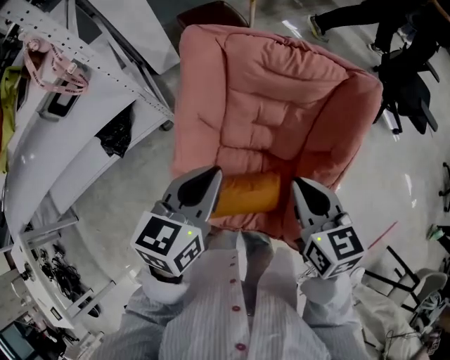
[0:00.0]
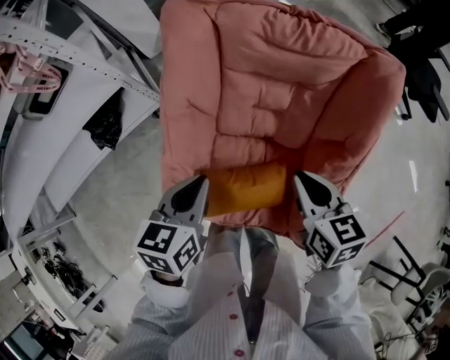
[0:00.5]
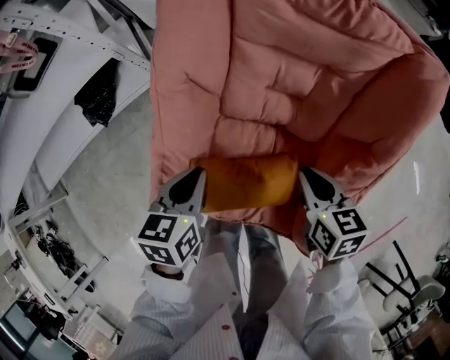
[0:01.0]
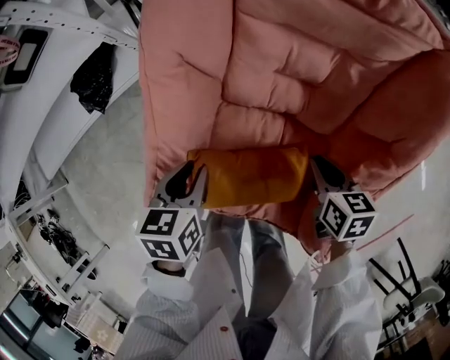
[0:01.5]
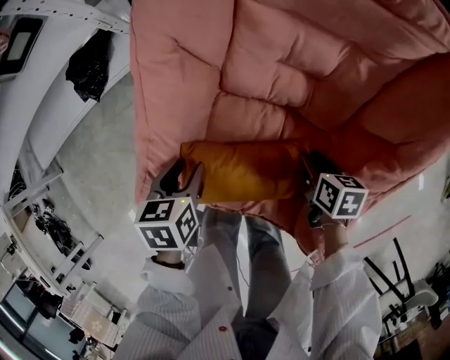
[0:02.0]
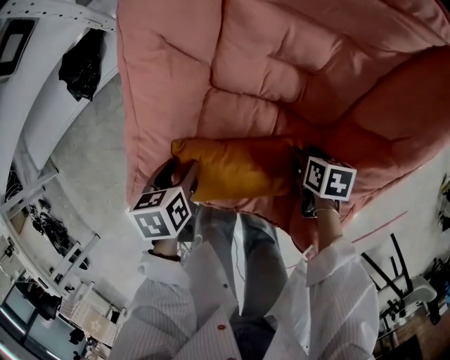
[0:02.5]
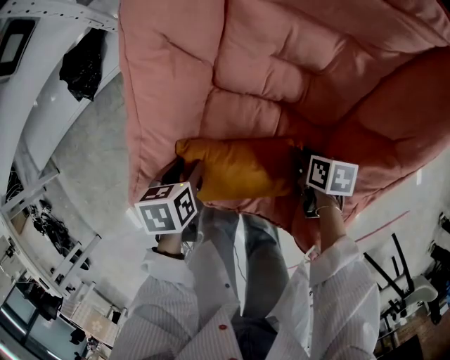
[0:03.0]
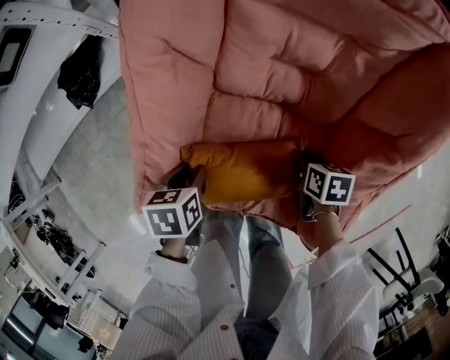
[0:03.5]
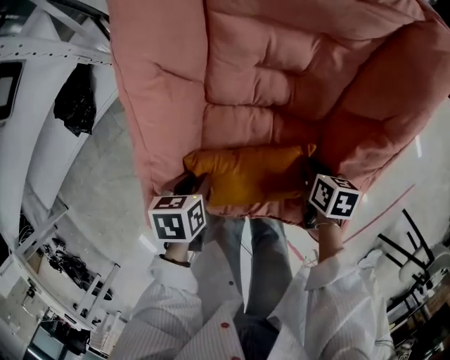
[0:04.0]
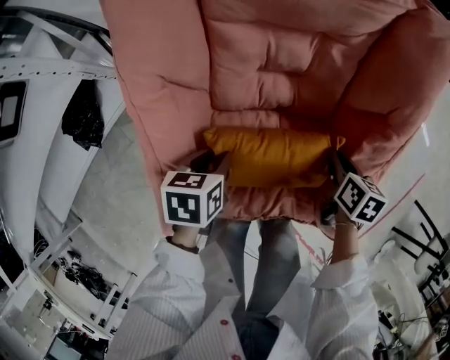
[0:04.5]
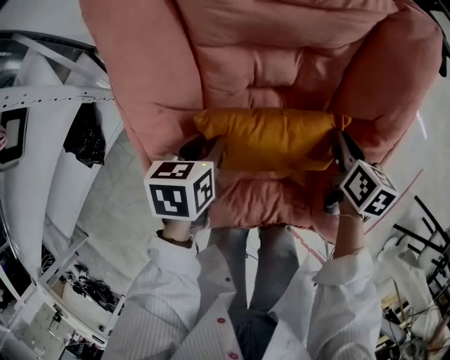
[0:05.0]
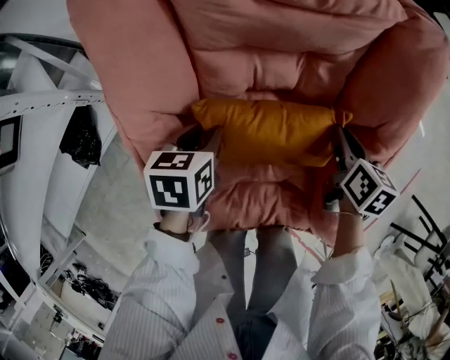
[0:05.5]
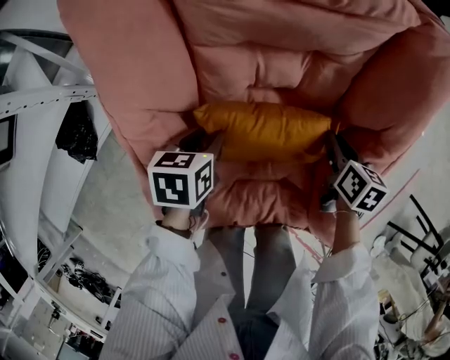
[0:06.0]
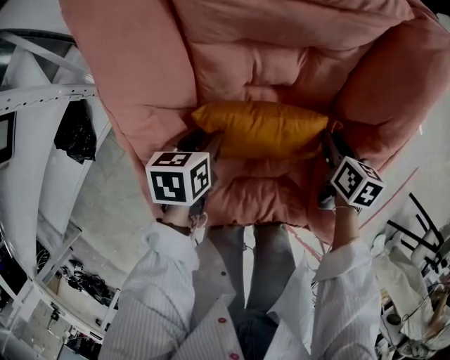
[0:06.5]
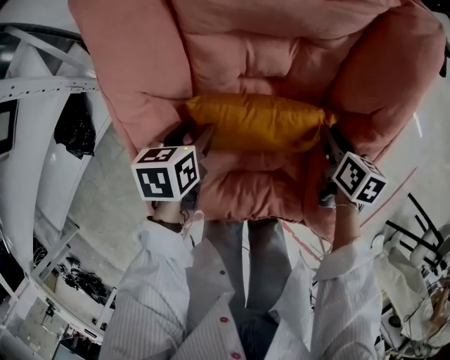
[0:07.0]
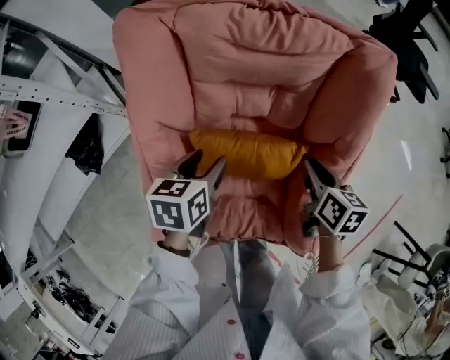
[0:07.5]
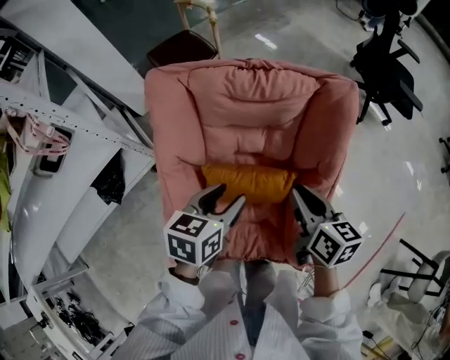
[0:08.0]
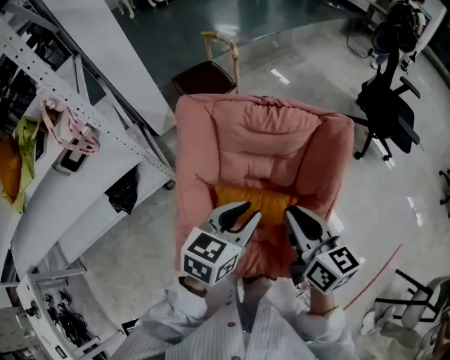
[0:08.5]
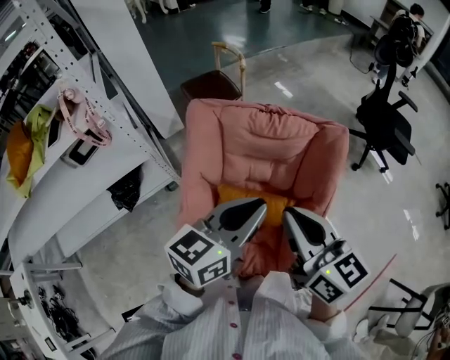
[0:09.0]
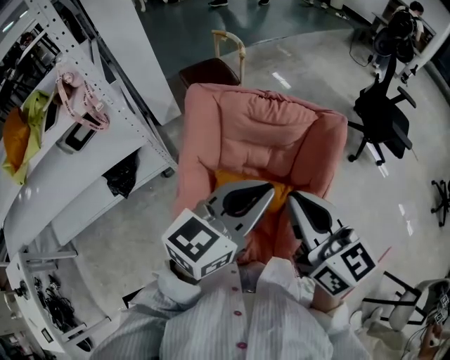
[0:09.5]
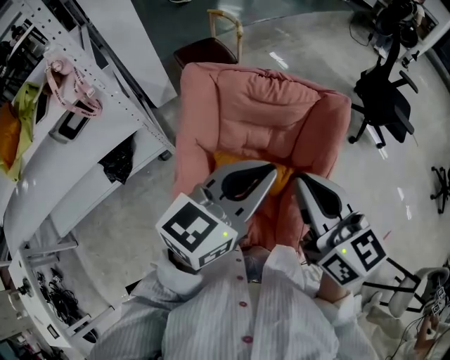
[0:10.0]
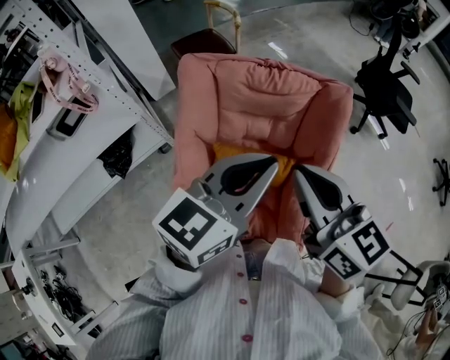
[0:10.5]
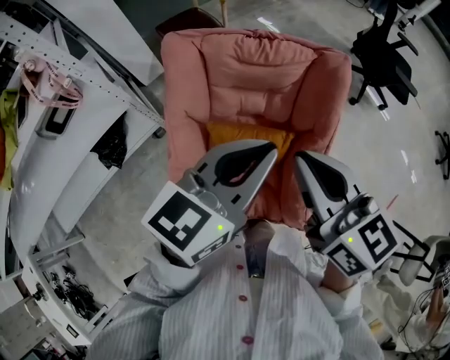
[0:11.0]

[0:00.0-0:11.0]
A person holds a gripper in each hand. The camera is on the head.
0:00.0 to 0:02.0: The two grippers go approximately 40 cm downward. The left gripper angles its fingers downward, by about 30 degrees, and opens up, while the right gripper turns by some 40 degrees, and opens up.
0:02.0 to 0:03.5: The right gripper changes place by roughly 5 cm.
0:03.5 to 0:05.5: The right gripper goes some 15 cm upward, and swivels approximately 40 degrees; the left gripper ends up roughly 25 cm from where it was, and changes its angle by about 30 degrees.
0:05.5 to 0:07.5: Both grippers move upward, some 5 cm. The left gripper opens its fingers.
0:07.5 to 0:09.0: The two grippers go some 35 cm upward. The left gripper tilts its fingers some 40 degrees upward, and closes its fingers. The right gripper angles its fingers upward, by about 30 degrees.
0:09.0 to 0:11.0: The grippers make only small movements.

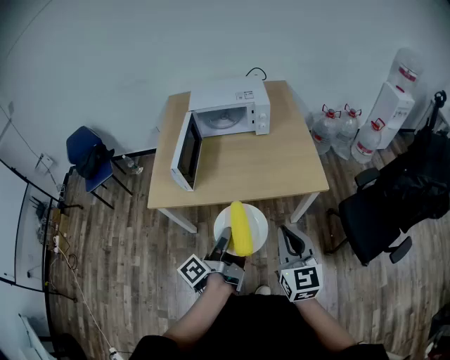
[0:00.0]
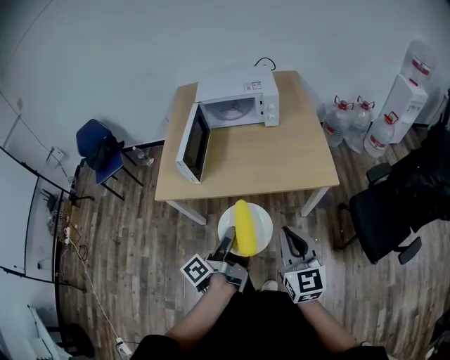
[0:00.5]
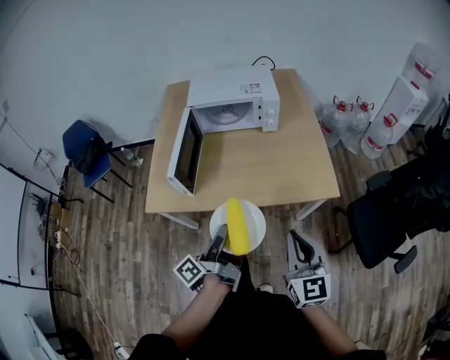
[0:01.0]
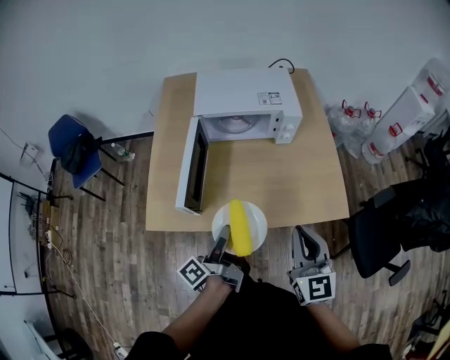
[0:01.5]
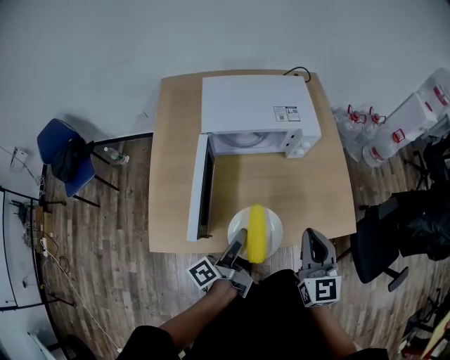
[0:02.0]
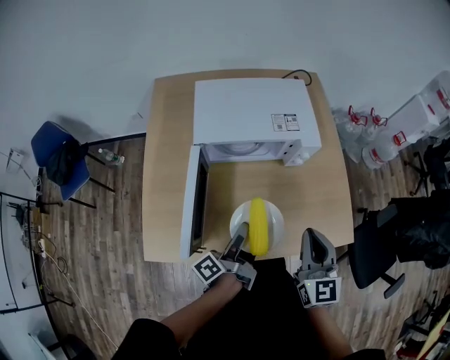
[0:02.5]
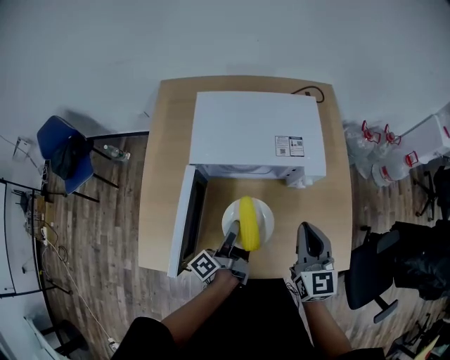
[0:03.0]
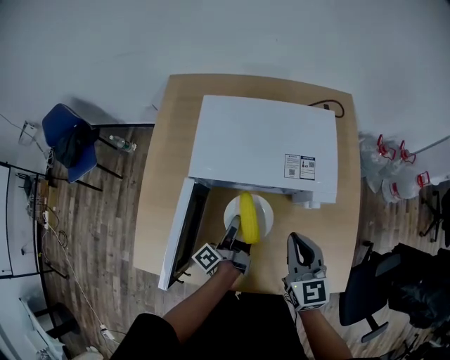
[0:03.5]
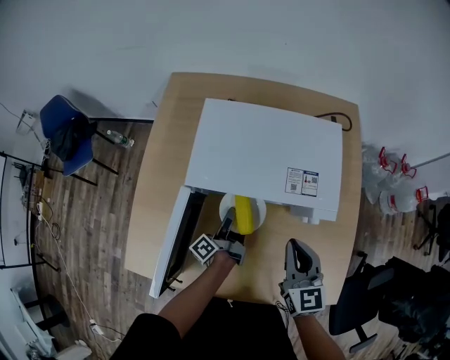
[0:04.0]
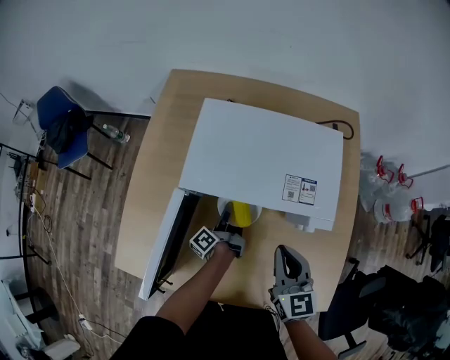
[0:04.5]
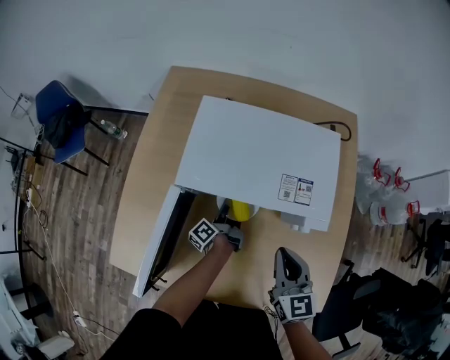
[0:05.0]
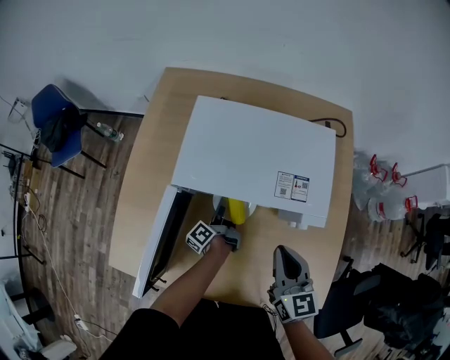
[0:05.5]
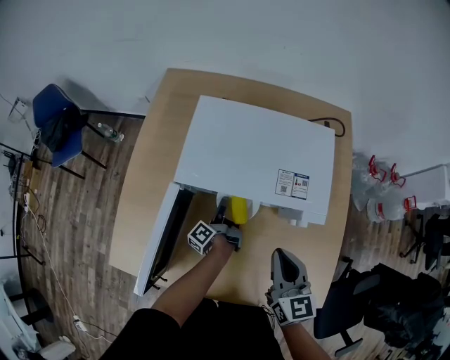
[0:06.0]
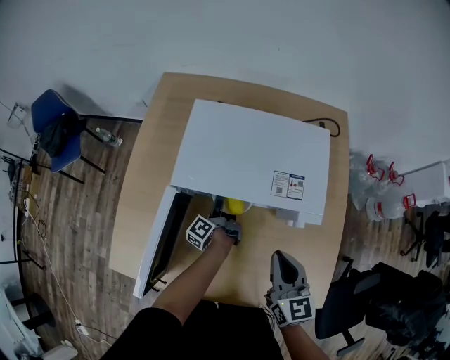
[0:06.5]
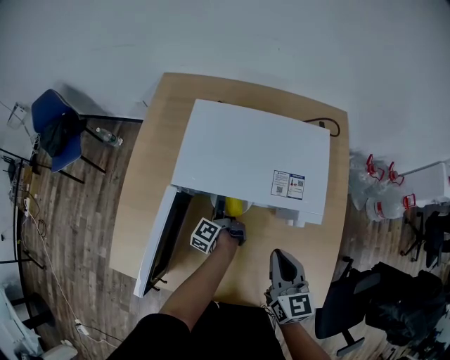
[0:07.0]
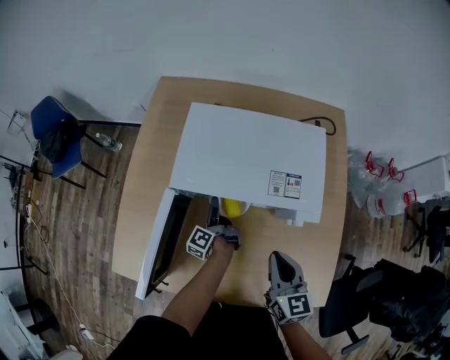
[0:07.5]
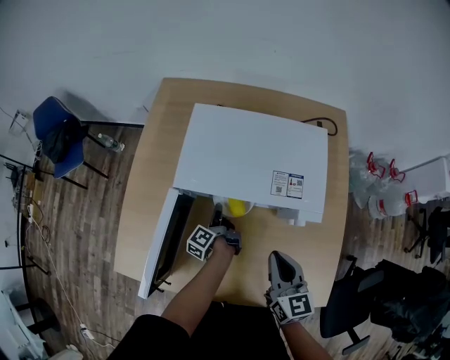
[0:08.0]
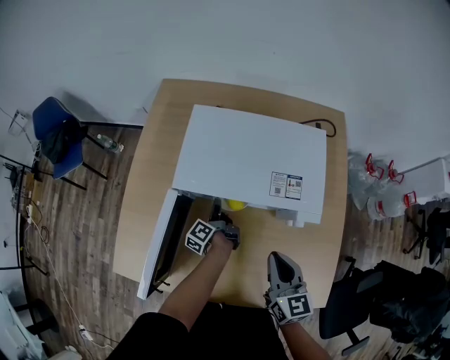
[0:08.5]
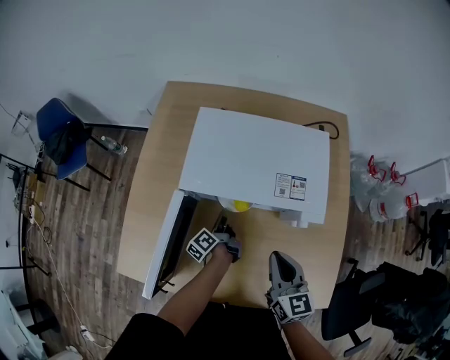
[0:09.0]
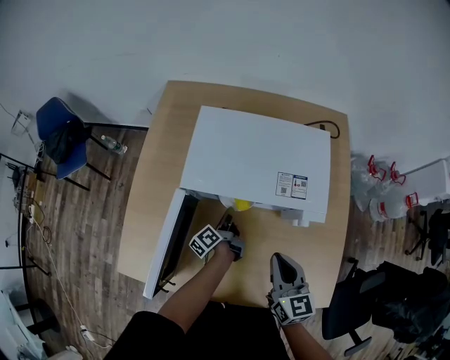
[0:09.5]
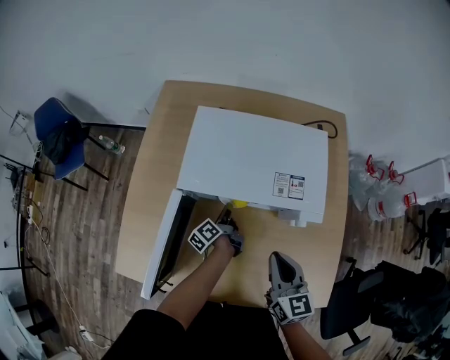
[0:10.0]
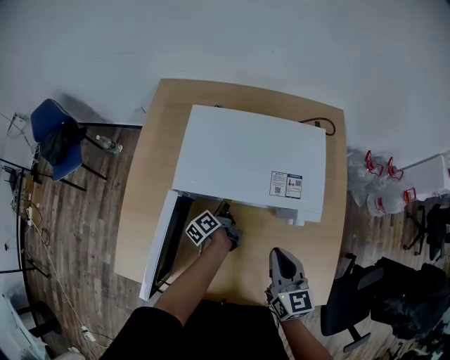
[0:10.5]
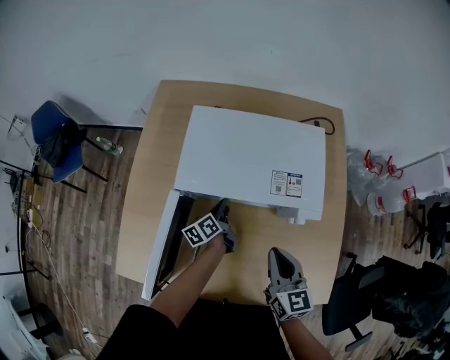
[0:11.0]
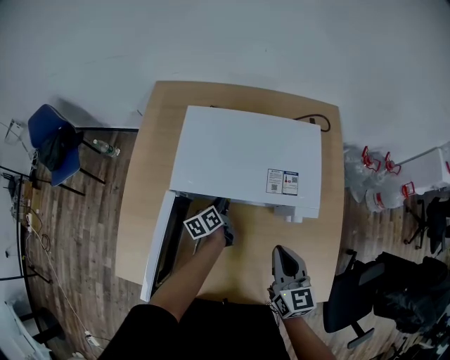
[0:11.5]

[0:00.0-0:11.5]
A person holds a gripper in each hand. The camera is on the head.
0:00.0 to 0:02.0: The right gripper shifts by roughly 30 cm.
0:02.0 to 0:04.0: The right gripper moves roughly 25 cm.

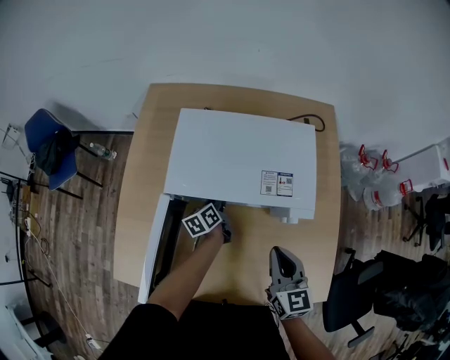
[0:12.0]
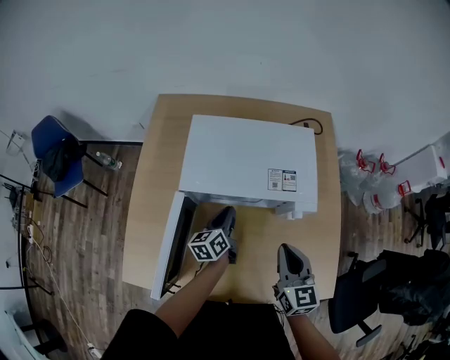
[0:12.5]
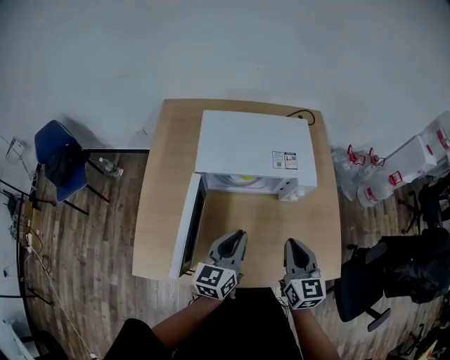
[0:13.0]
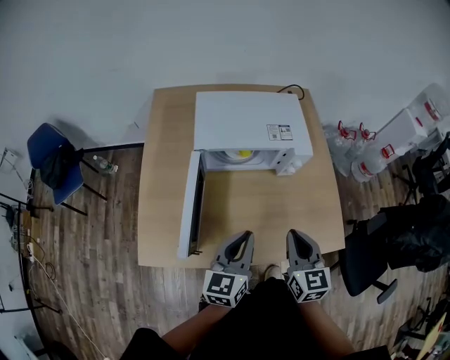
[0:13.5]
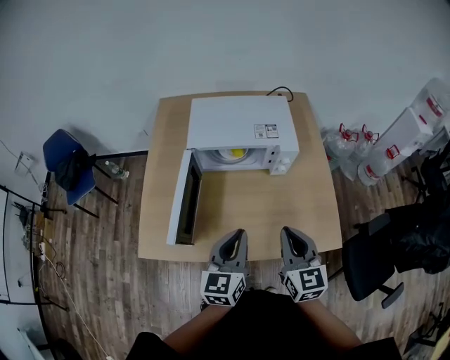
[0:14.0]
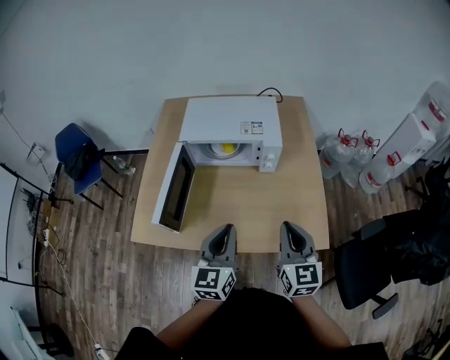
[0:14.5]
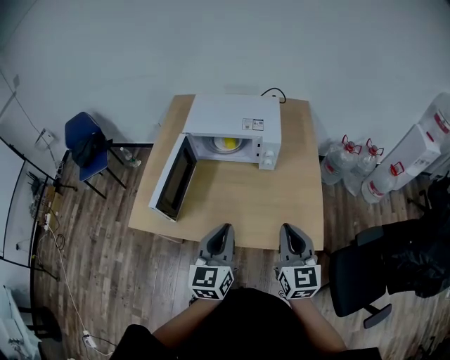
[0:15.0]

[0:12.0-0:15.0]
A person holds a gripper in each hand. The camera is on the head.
0:12.0 to 0:13.5: The right gripper ends up some 20 cm from where it was.
0:13.5 to 0:15.0: The right gripper shifts by some 20 cm.

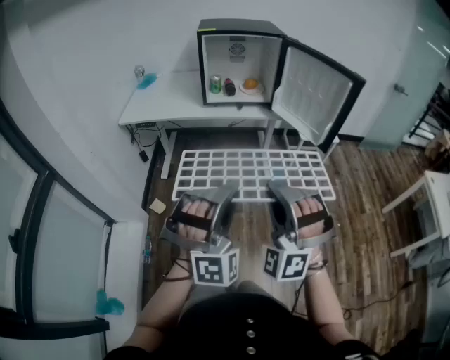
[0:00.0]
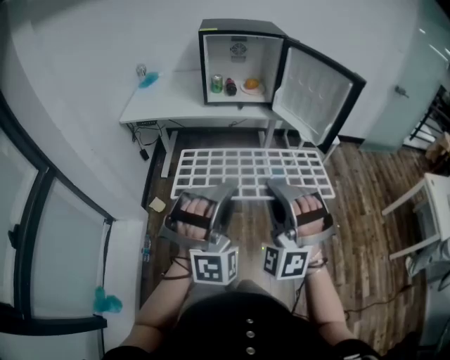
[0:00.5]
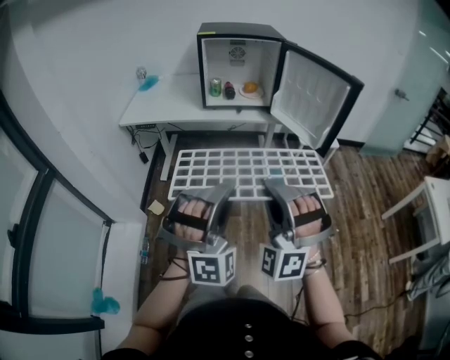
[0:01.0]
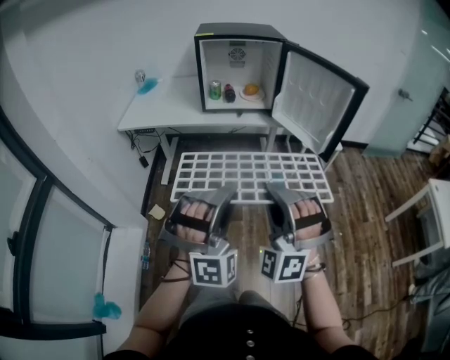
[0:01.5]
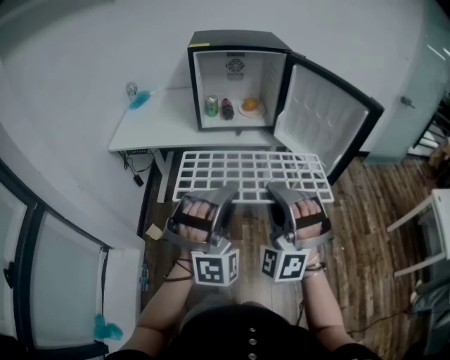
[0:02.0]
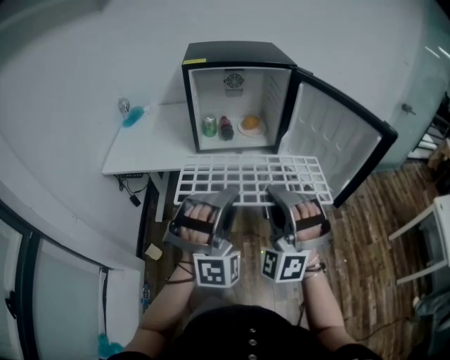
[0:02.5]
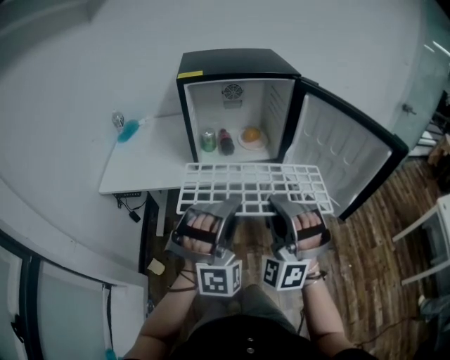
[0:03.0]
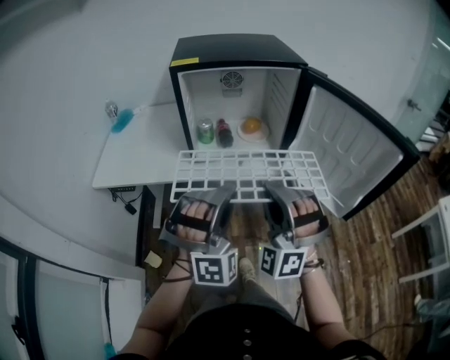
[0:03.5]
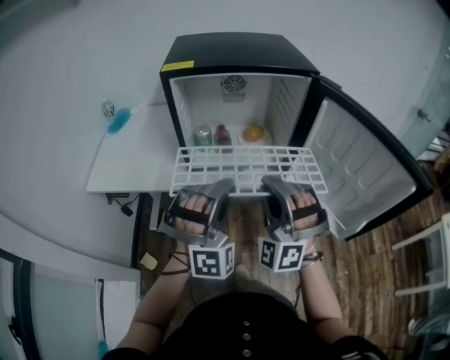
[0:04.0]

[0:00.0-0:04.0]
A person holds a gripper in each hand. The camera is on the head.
0:00.0 to 0:02.0: The left gripper ends up approximately 15 cm from where it was.
0:02.0 to 0:04.0: The left gripper changes place by about 30 cm.
